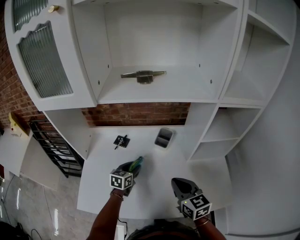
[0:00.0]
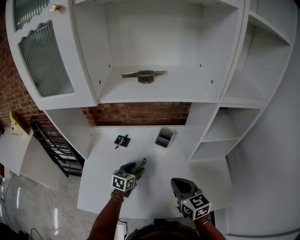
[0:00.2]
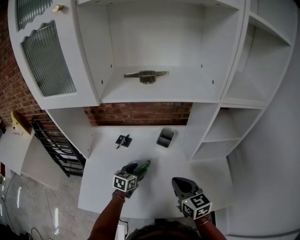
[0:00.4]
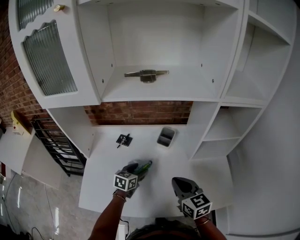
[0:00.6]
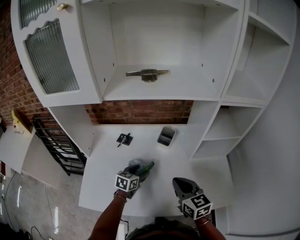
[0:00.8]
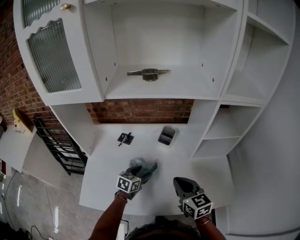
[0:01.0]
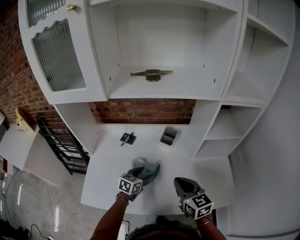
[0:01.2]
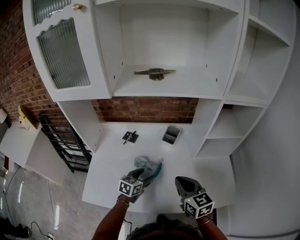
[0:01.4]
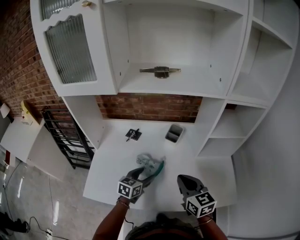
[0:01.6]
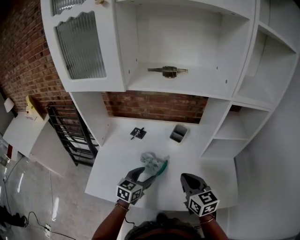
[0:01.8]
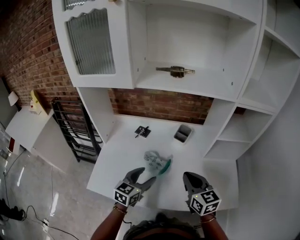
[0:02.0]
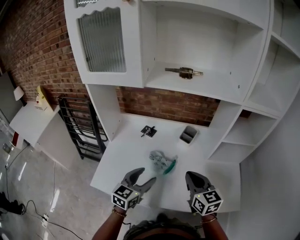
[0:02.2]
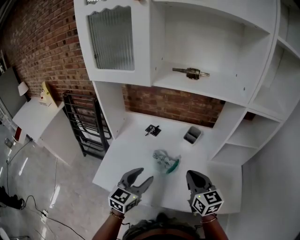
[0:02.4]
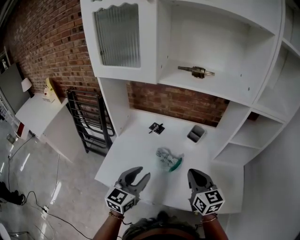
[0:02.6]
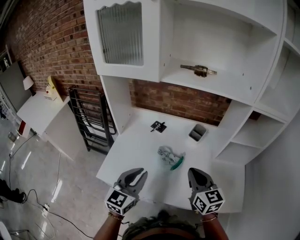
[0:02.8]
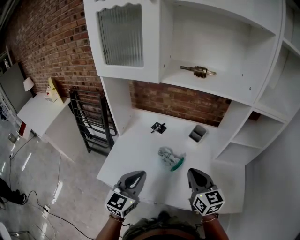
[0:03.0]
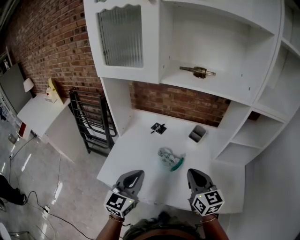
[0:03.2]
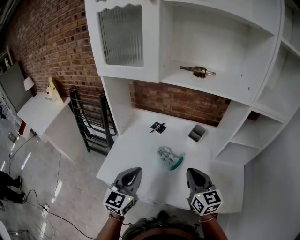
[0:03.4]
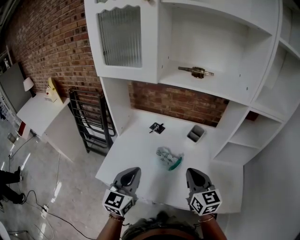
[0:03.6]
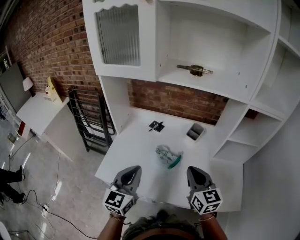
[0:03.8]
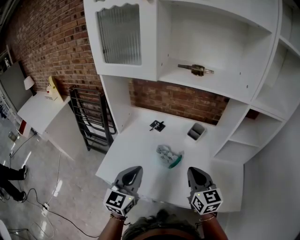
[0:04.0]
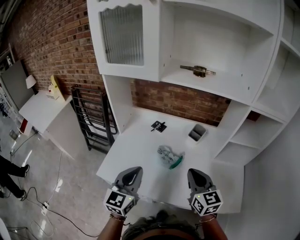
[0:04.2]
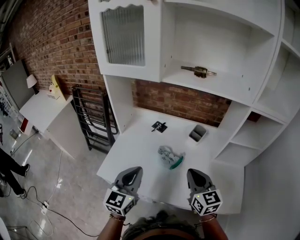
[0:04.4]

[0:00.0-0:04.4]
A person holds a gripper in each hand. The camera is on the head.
0:00.0 to 0:01.4: The left gripper is displaced backward by approximately 10 cm.
0:01.4 to 0:03.0: The left gripper heads upward, backward and to the left, covering roughly 25 cm, changes its angle by about 40 degrees, and closes, while the right gripper shifts by roughly 5 cm.
0:03.0 to 0:04.4: The grippers stay close to where they were, moving slightly.

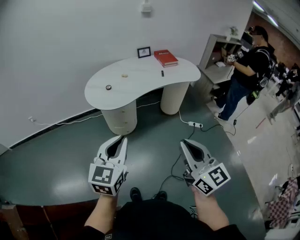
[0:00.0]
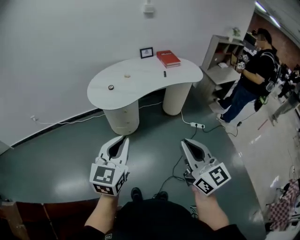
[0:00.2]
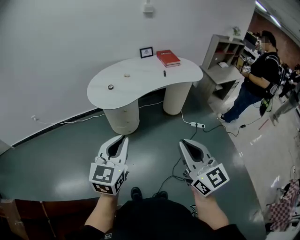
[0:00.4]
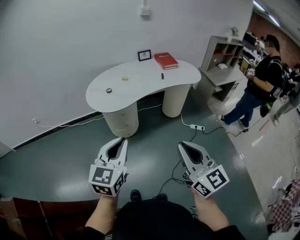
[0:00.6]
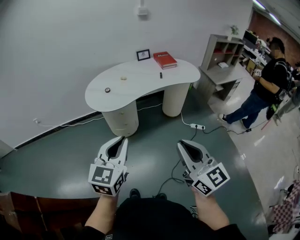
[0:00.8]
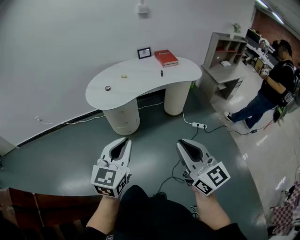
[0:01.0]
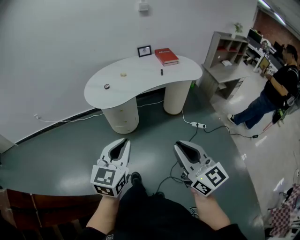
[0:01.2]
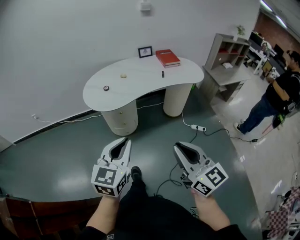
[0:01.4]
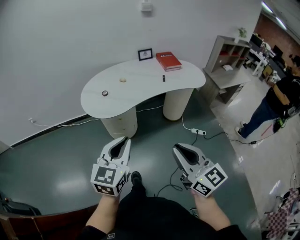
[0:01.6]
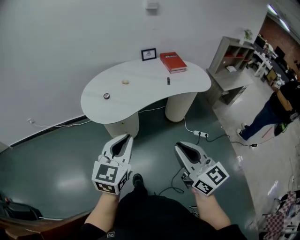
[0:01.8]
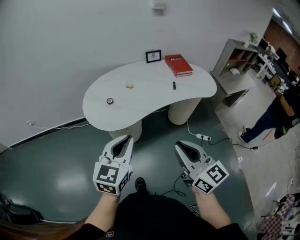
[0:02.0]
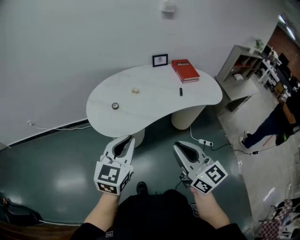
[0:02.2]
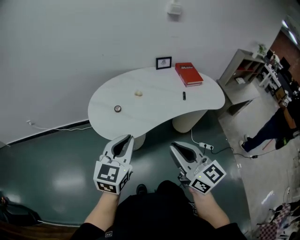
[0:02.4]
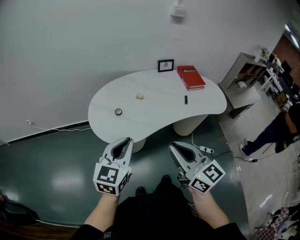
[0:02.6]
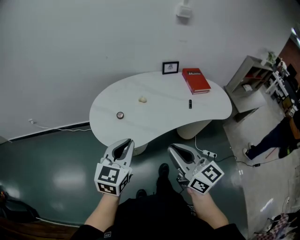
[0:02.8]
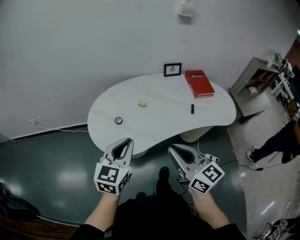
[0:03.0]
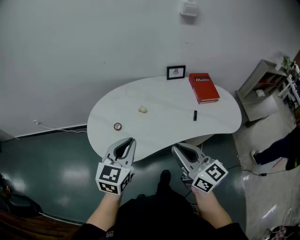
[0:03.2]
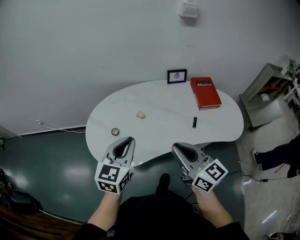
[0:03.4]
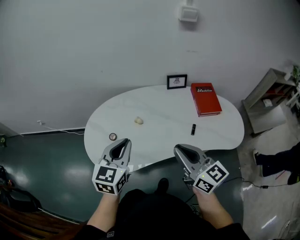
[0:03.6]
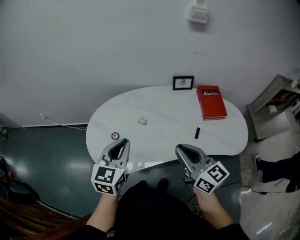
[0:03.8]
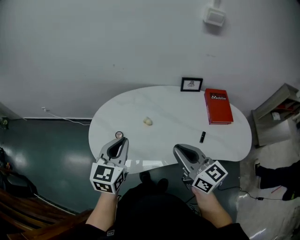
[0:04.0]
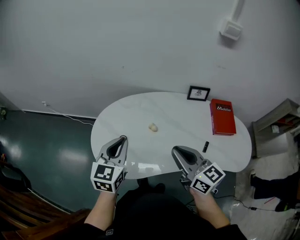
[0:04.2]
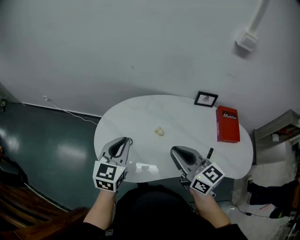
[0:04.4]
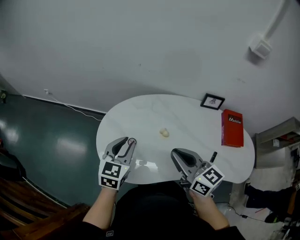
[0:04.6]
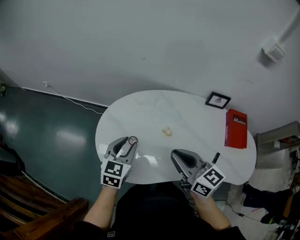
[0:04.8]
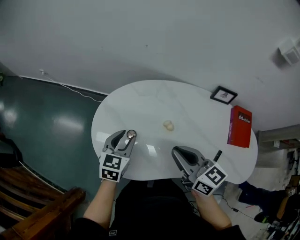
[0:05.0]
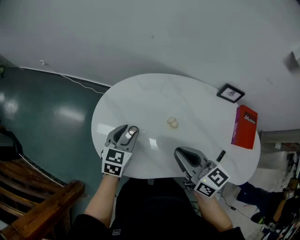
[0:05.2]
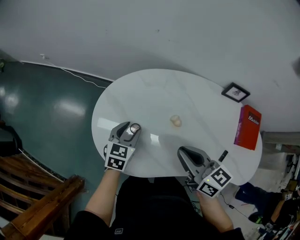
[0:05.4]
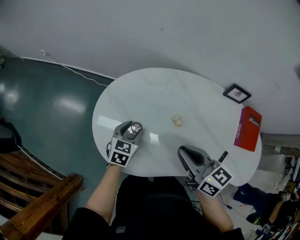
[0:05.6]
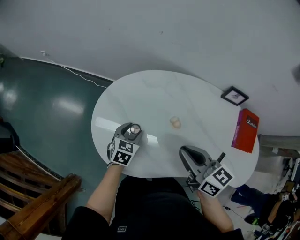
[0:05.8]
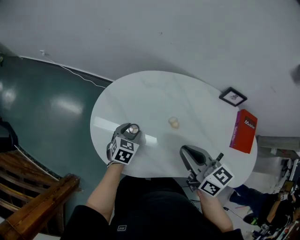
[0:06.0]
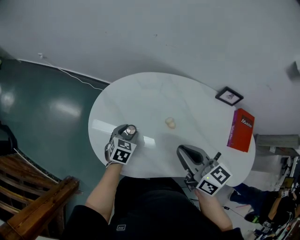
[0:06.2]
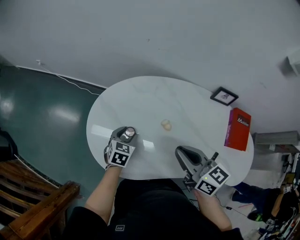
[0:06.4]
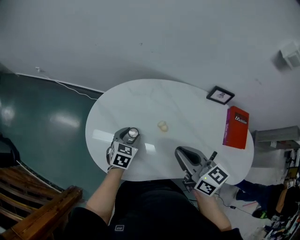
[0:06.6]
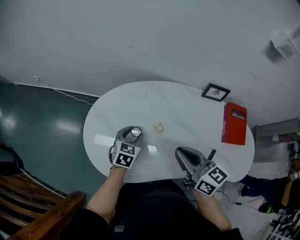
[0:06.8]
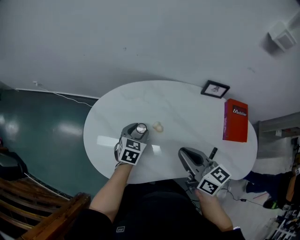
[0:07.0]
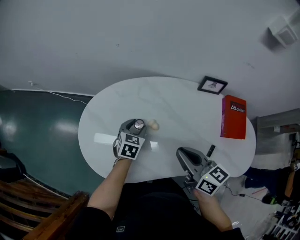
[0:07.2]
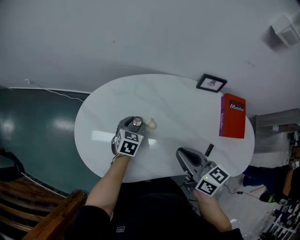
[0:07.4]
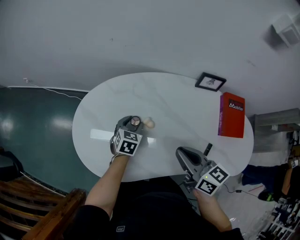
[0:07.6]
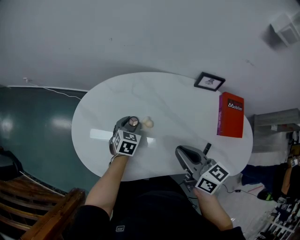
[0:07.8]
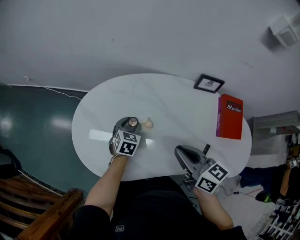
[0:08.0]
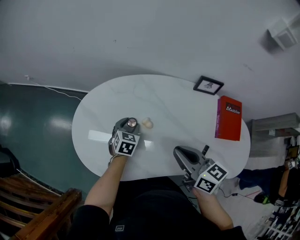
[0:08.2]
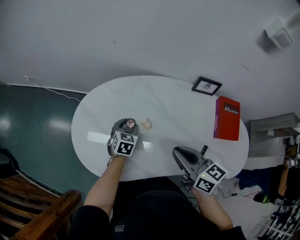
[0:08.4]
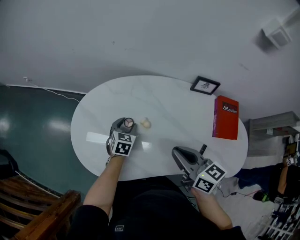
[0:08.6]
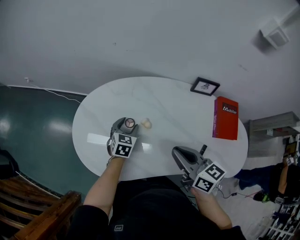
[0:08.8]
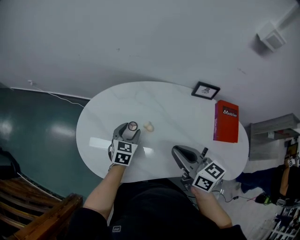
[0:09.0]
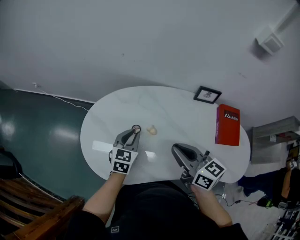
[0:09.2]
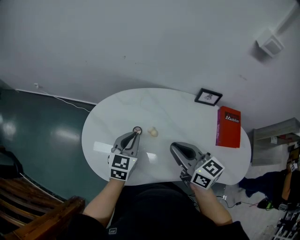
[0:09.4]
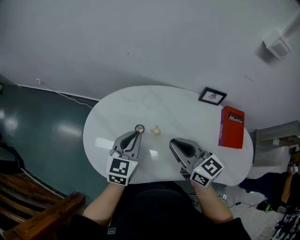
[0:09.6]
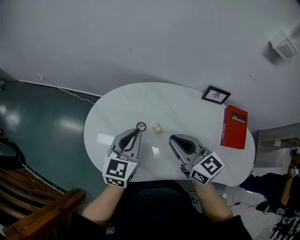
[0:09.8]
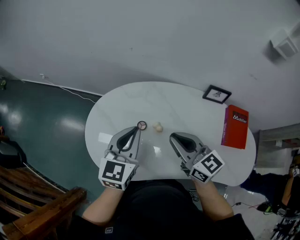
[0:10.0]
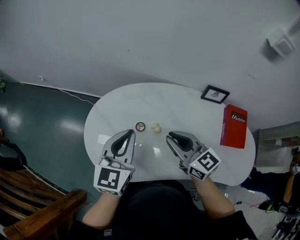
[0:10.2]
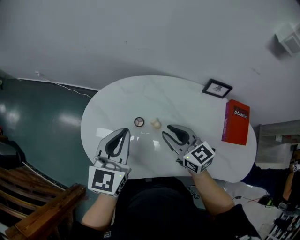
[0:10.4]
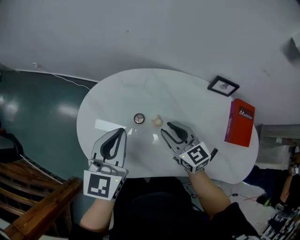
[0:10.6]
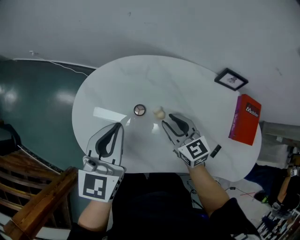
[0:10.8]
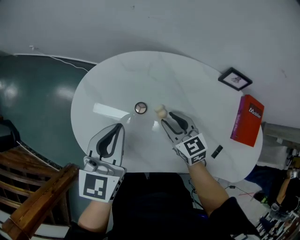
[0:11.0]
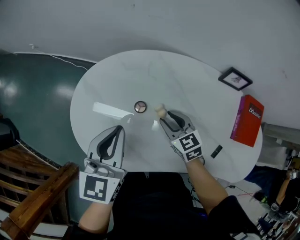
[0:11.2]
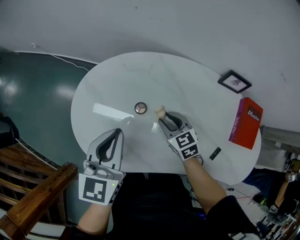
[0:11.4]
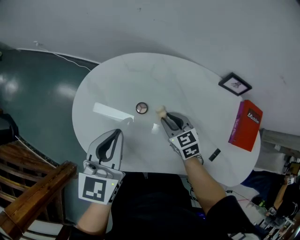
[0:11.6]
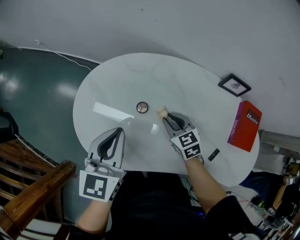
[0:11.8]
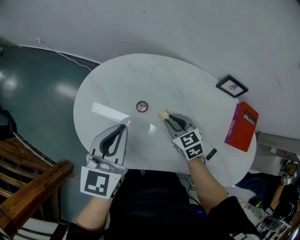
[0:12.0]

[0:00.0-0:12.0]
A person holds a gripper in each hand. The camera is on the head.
0:00.0 to 0:01.6: The left gripper shifts about 10 cm forward and to the right, while the right gripper is displaced forward by approximately 10 cm.
0:01.6 to 0:03.0: Both grippers travel together forward, some 35 cm.
0:03.0 to 0:04.4: Both grippers travel together forward, roughly 20 cm. The left gripper changes its angle by about 20 degrees, while the right gripper swivels roughly 20 degrees.
0:04.4 to 0:06.0: The right gripper travels downward and forward by approximately 10 cm. The left gripper goes some 25 cm downward, rotates some 30 degrees, and opens.
0:06.0 to 0:07.6: Both grippers move to the right, approximately 10 cm.
0:07.6 to 0:09.0: The left gripper heads upward, covering some 5 cm.
0:09.0 to 0:10.4: The left gripper travels upward by some 20 cm, turns by roughly 20 degrees, and closes up. Meanwhile the right gripper is displaced forward and downward by about 10 cm.
0:10.4 to 0:12.0: The right gripper is displaced downward by roughly 15 cm, and swivels some 30 degrees. Meanwhile the left gripper moves about 5 cm.

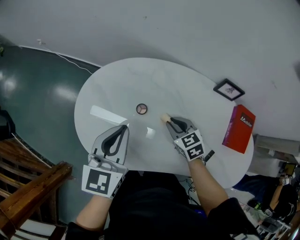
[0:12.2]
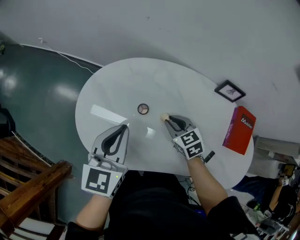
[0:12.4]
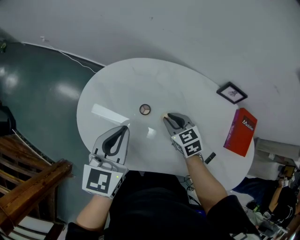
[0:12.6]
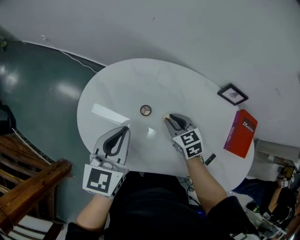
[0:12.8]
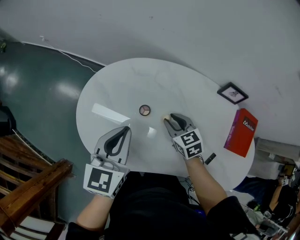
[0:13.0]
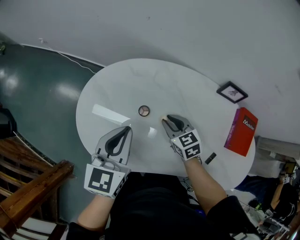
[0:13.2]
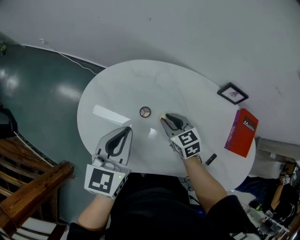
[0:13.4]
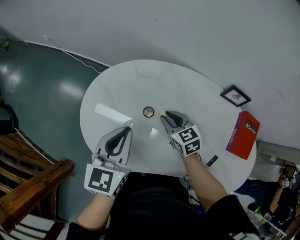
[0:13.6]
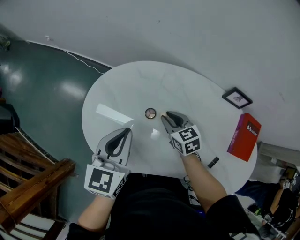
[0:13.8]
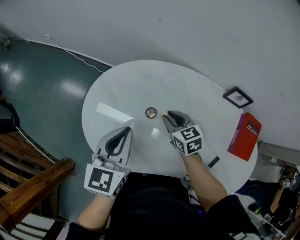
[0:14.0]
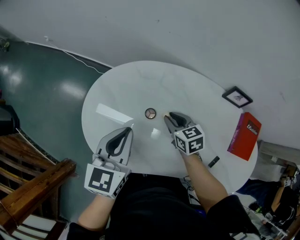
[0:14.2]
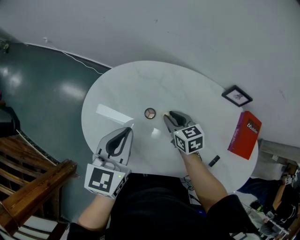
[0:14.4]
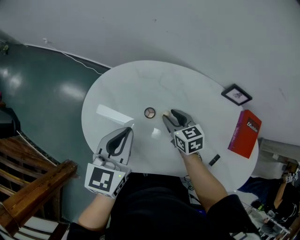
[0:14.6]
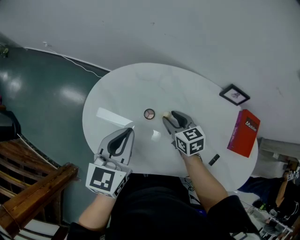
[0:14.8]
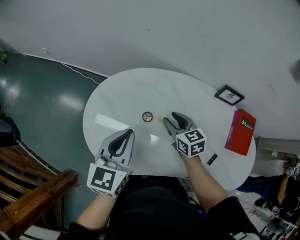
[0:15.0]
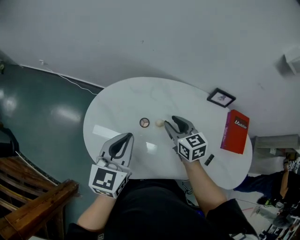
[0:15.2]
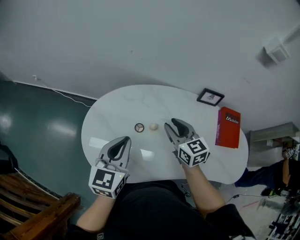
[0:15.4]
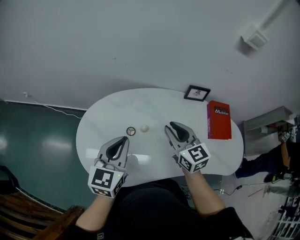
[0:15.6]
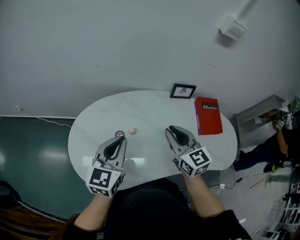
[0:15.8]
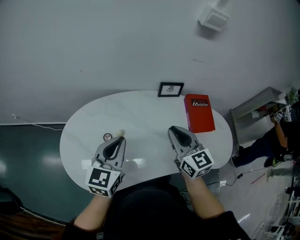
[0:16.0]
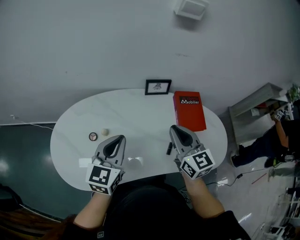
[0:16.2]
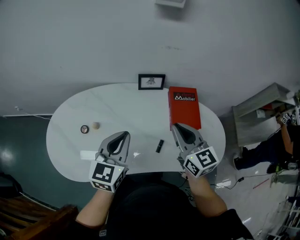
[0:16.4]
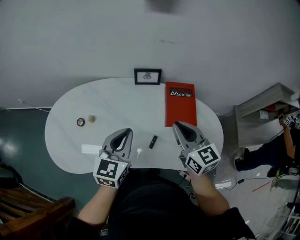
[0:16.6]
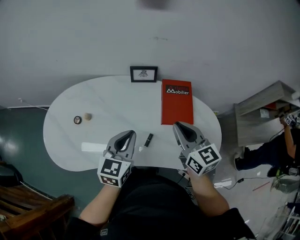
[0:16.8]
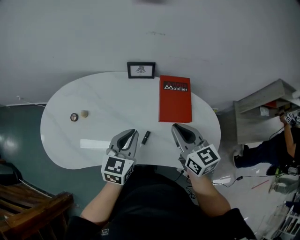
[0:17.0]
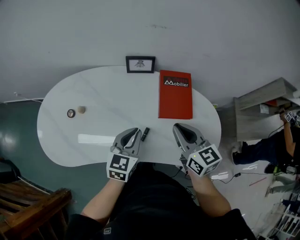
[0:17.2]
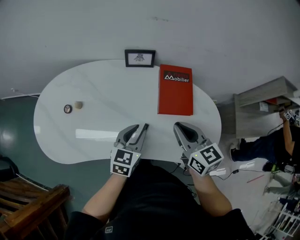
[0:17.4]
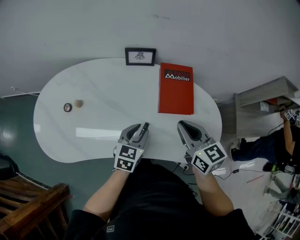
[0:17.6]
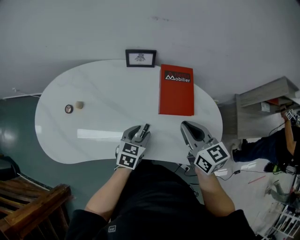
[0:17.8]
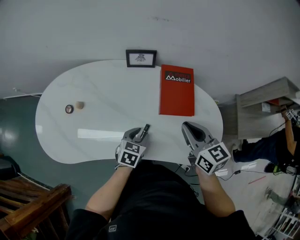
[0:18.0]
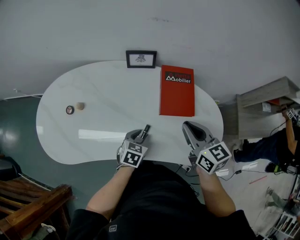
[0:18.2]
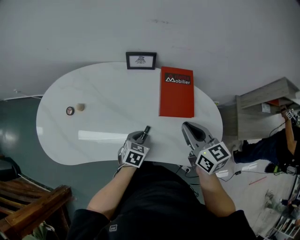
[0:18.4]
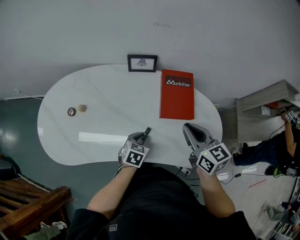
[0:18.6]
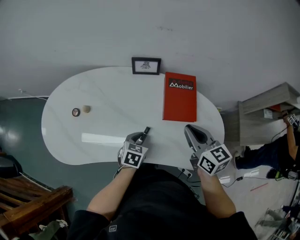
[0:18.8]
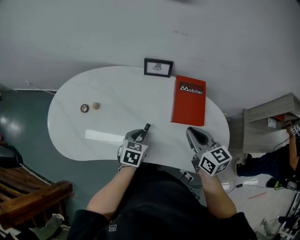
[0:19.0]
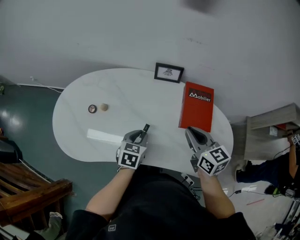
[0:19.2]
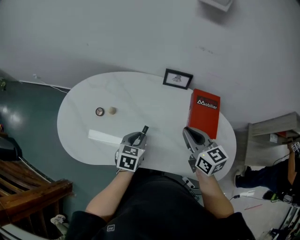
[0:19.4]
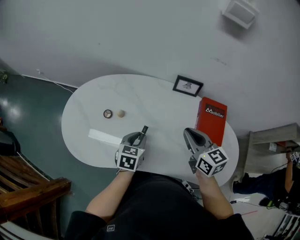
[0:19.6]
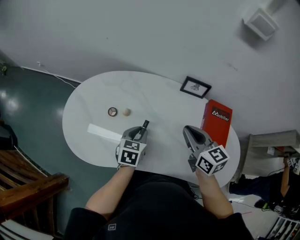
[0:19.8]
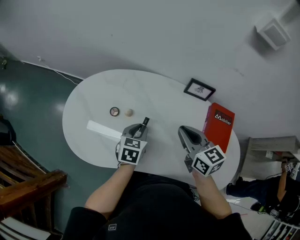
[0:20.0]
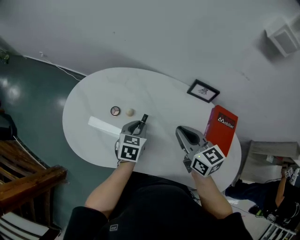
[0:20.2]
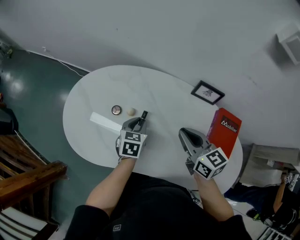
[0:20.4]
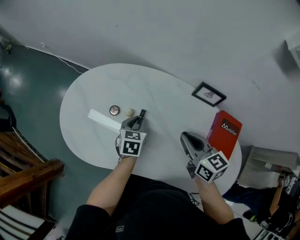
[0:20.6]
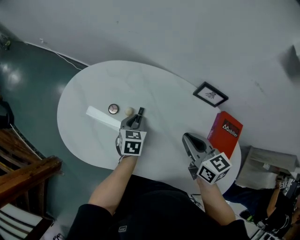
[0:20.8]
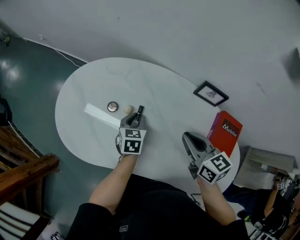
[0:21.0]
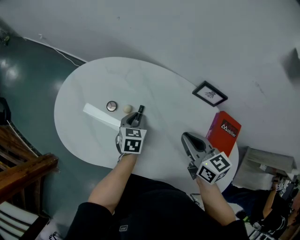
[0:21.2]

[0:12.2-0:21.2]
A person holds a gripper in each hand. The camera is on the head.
0:12.2 to 0:13.8: The right gripper heads forward, covering about 5 cm.
0:13.8 to 0:15.2: The right gripper goes some 10 cm upward.
0:15.2 to 0:16.6: Both grippers travel together to the right, approximately 40 cm. The right gripper changes its angle by approximately 20 degrees, and closes.
0:16.6 to 0:18.2: The right gripper moves to the right and downward, roughly 10 cm. Meanwhile the left gripper is displaced downward by roughly 25 cm, angles its fingers downward, by some 30 degrees, and opens its fingers.
0:18.2 to 0:19.8: The grippers both shift to the left and forward by some 25 cm. The left gripper turns by roughly 20 degrees.
0:19.8 to 0:21.2: The left gripper goes roughly 10 cm forward and downward, while the right gripper shifts by about 5 cm.
